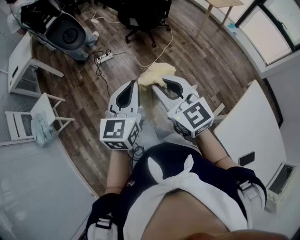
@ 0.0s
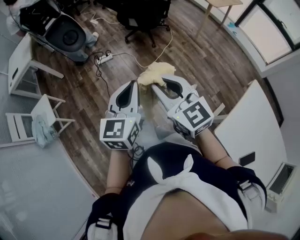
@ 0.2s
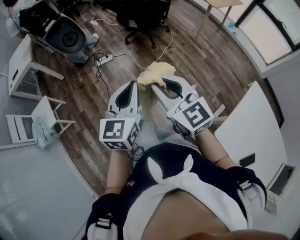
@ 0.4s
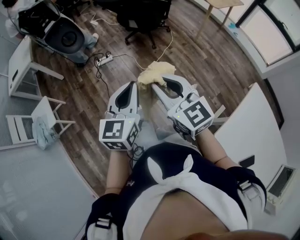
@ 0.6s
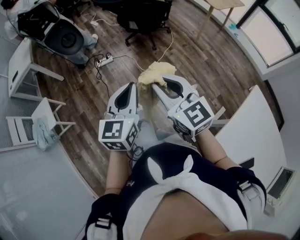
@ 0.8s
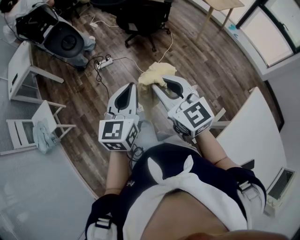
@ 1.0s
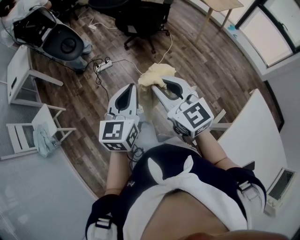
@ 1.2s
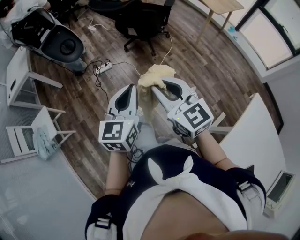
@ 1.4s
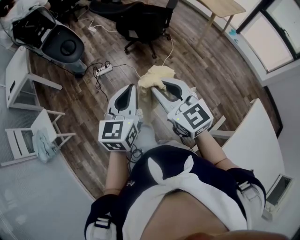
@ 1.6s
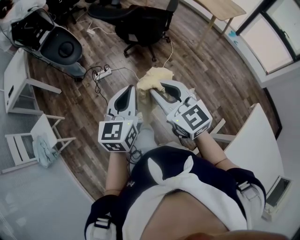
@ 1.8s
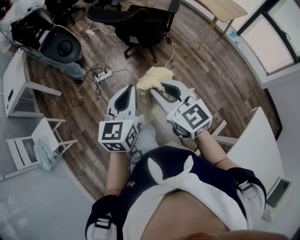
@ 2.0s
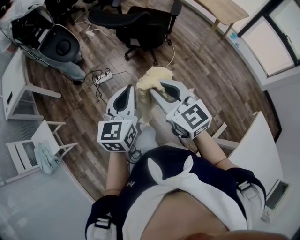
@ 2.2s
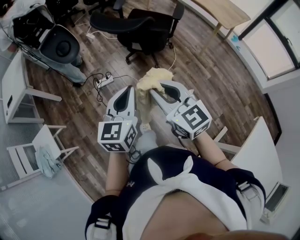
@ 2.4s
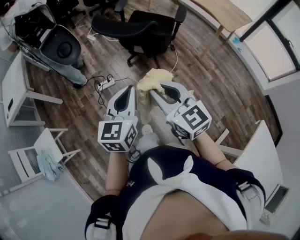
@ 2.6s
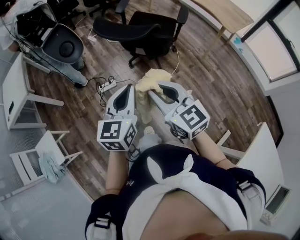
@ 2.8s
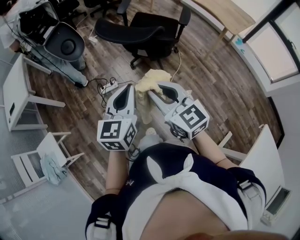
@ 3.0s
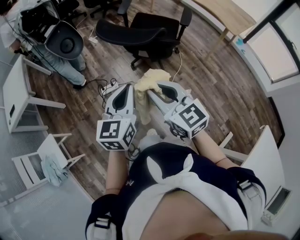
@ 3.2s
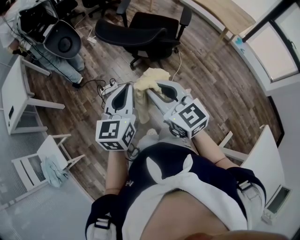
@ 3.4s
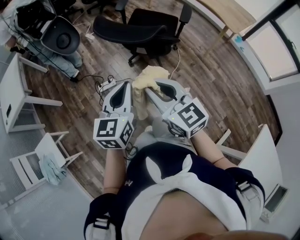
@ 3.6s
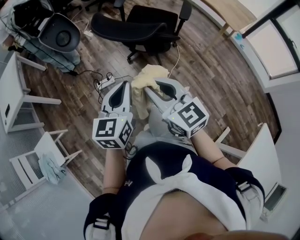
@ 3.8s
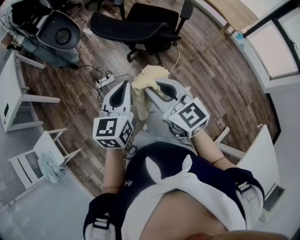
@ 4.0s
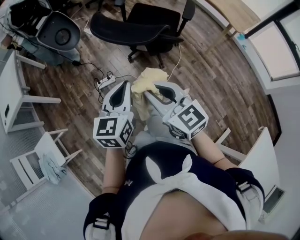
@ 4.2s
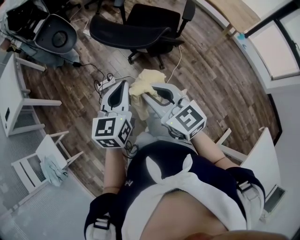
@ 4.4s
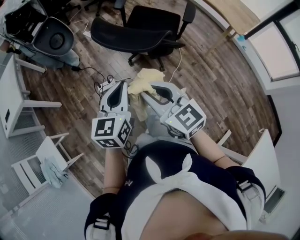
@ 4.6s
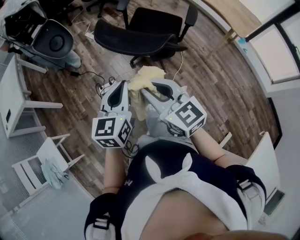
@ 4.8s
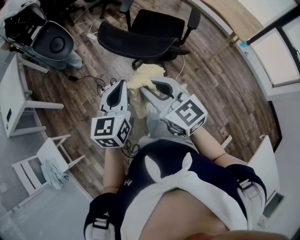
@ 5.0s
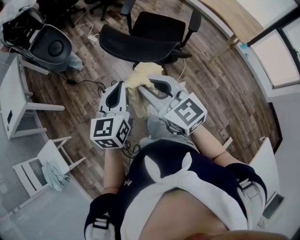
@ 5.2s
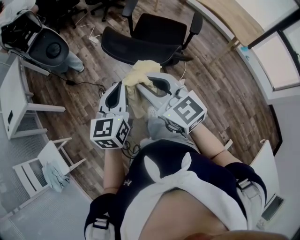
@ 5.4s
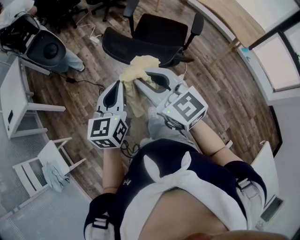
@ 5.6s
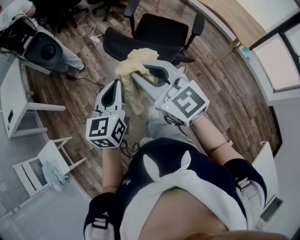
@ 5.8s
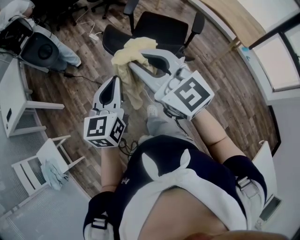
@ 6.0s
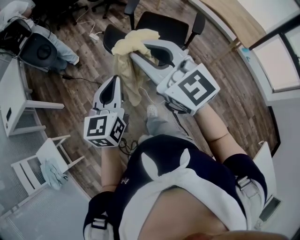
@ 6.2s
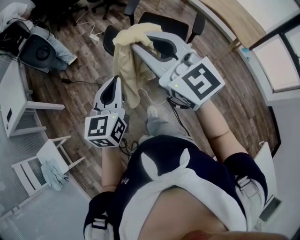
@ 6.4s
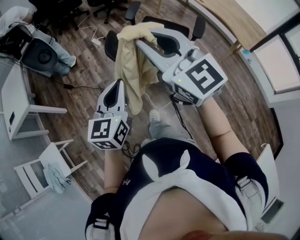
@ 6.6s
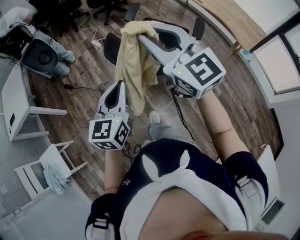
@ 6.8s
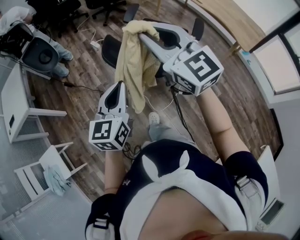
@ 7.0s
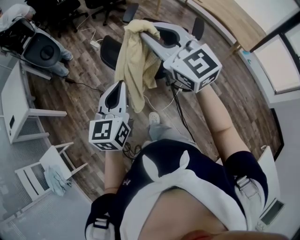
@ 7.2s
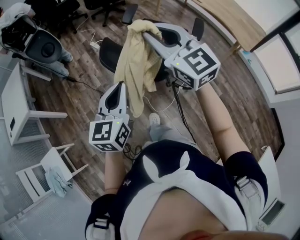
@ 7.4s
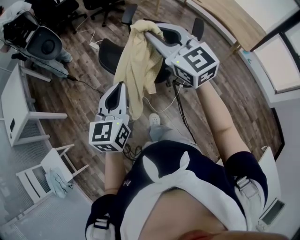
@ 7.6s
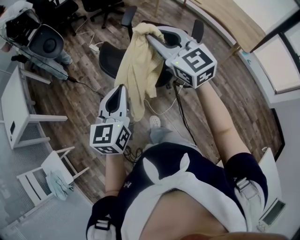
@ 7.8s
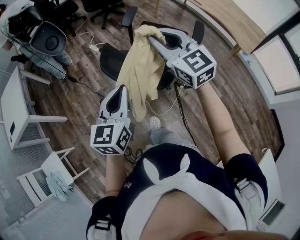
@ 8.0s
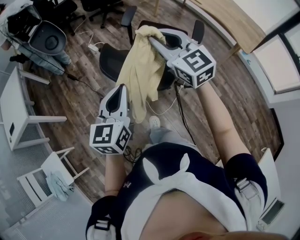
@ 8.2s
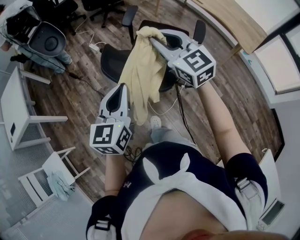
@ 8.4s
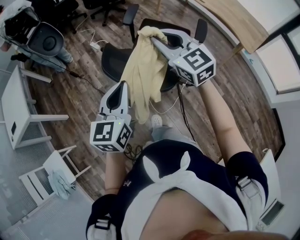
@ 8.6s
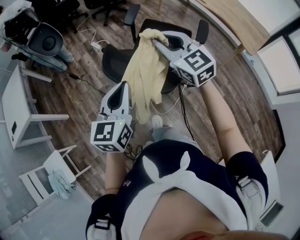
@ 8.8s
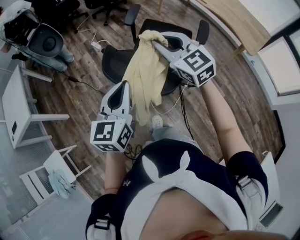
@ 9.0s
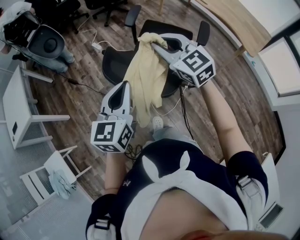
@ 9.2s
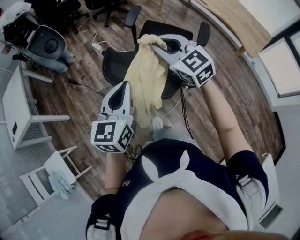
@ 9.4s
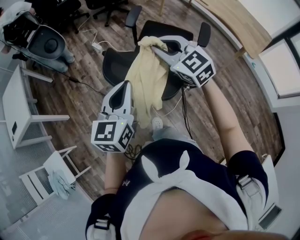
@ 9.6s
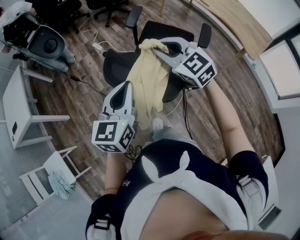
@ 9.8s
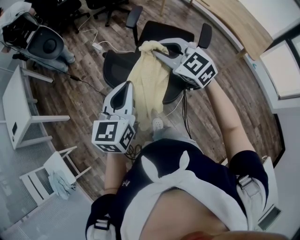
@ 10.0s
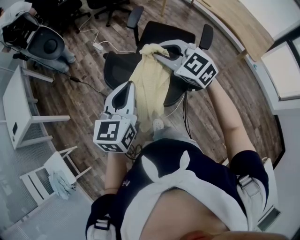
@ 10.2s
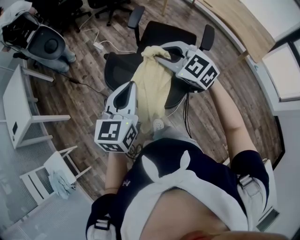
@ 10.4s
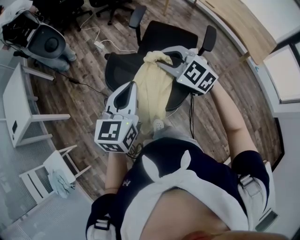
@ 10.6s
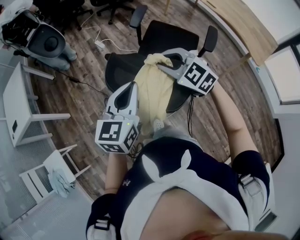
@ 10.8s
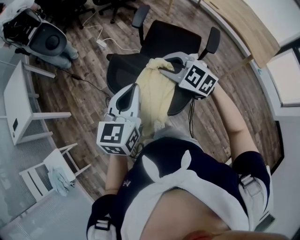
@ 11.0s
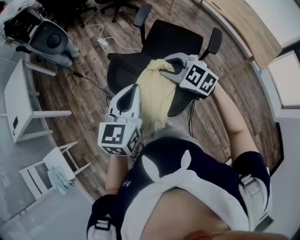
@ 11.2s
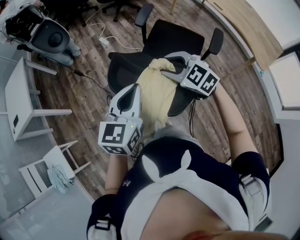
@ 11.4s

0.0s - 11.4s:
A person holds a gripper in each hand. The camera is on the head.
0.0s - 1.4s: Both grippers travel together forward, about 15 cm.
1.4s - 2.8s: Both grippers travel together forward, some 35 cm.
2.8s - 4.2s: Both grippers travel together forward, roughly 10 cm.
4.2s - 5.6s: The right gripper travels forward, upward and to the left by roughly 15 cm; the left gripper goes roughly 15 cm forward and to the left.
5.6s - 7.2s: The left gripper changes place by roughly 5 cm, while the right gripper goes roughly 20 cm forward, to the right and upward.
7.2s - 8.6s: The left gripper goes some 5 cm forward. The right gripper moves forward and downward, roughly 10 cm.
8.6s - 10.0s: The left gripper travels forward by approximately 5 cm. Meanwhile the right gripper changes place by approximately 5 cm.
10.0s - 11.4s: The right gripper is displaced downward by roughly 10 cm, and opens.

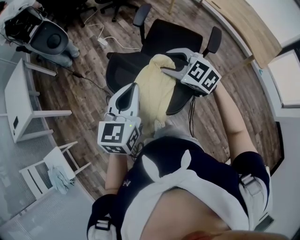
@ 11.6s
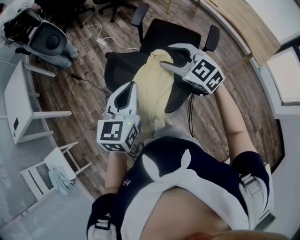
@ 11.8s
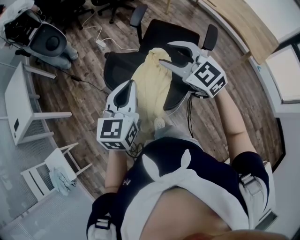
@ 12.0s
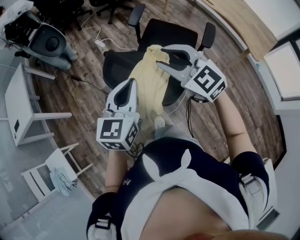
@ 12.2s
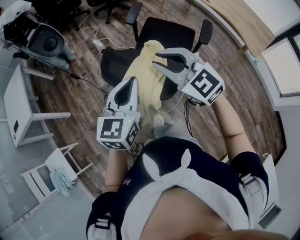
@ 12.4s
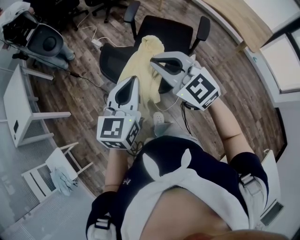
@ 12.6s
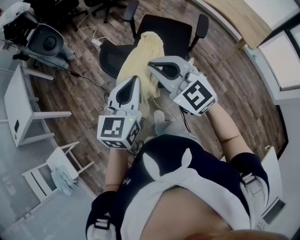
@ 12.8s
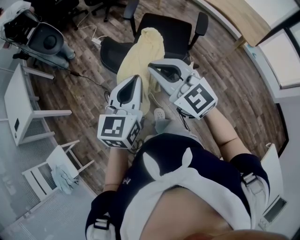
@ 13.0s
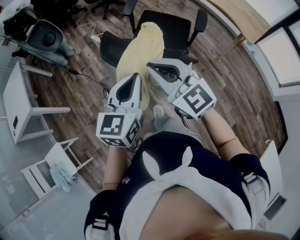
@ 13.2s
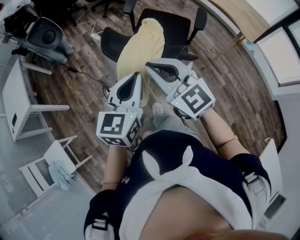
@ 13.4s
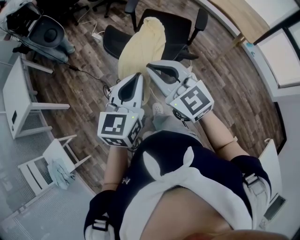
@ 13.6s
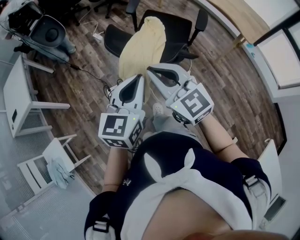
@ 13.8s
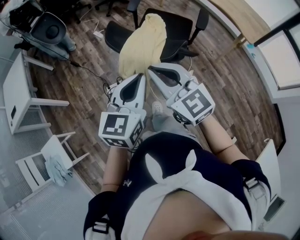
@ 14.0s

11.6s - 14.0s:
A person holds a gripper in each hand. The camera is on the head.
11.6s - 12.8s: The right gripper moves backward and upward, approximately 20 cm, turns by roughly 20 degrees, and closes up. Meanwhile the left gripper is displaced backward by approximately 10 cm.
12.8s - 14.0s: Both grippers travel together backward, roughly 10 cm.

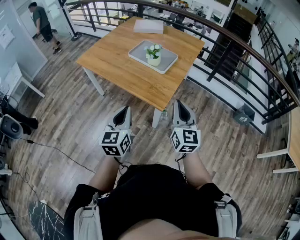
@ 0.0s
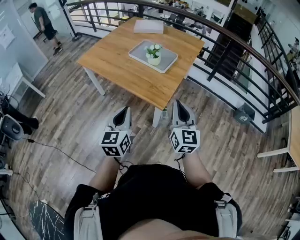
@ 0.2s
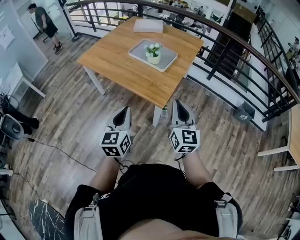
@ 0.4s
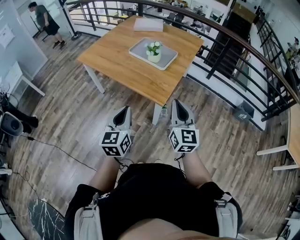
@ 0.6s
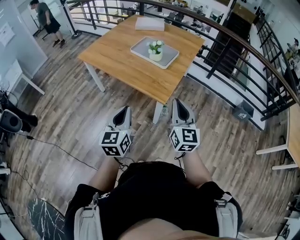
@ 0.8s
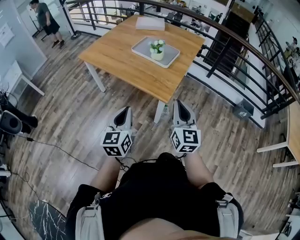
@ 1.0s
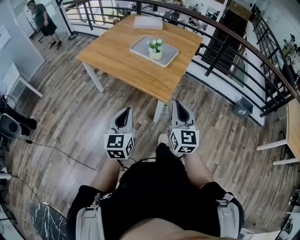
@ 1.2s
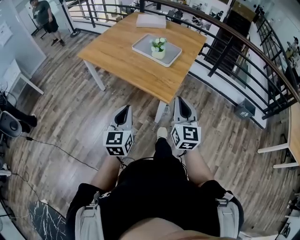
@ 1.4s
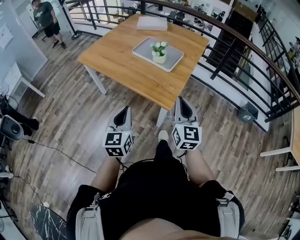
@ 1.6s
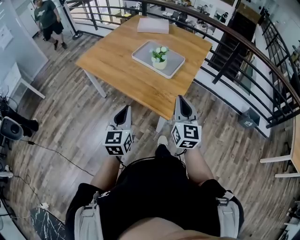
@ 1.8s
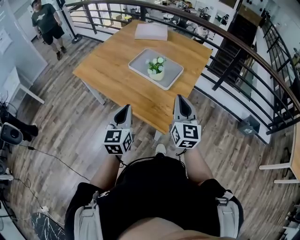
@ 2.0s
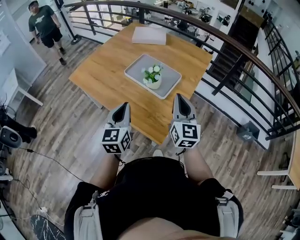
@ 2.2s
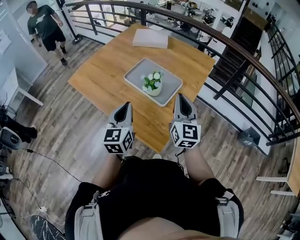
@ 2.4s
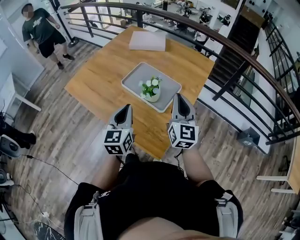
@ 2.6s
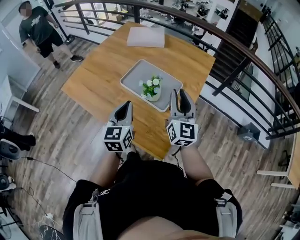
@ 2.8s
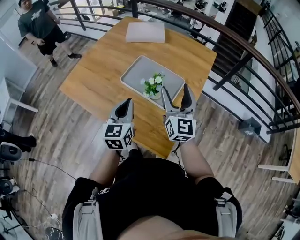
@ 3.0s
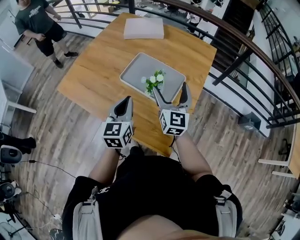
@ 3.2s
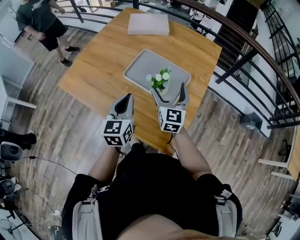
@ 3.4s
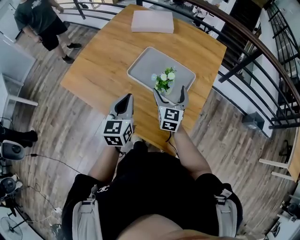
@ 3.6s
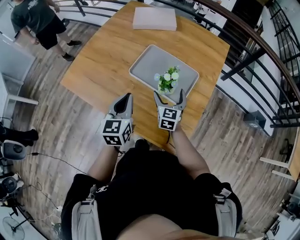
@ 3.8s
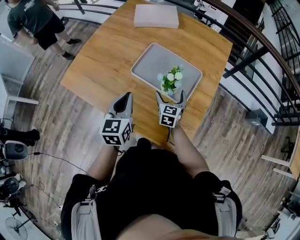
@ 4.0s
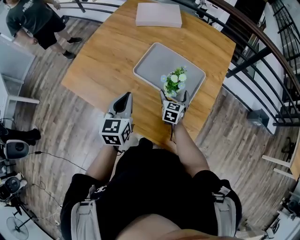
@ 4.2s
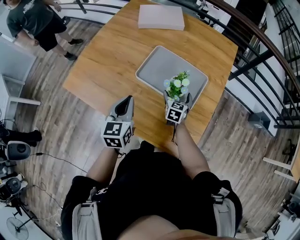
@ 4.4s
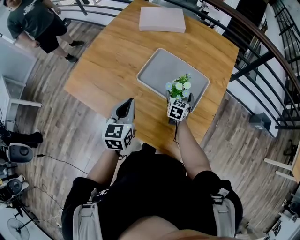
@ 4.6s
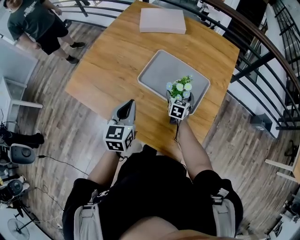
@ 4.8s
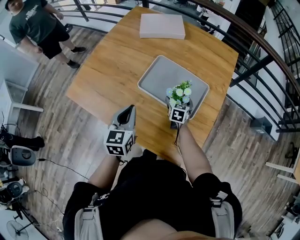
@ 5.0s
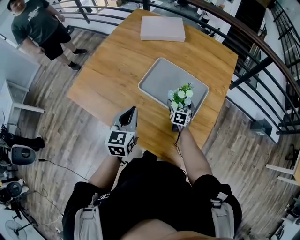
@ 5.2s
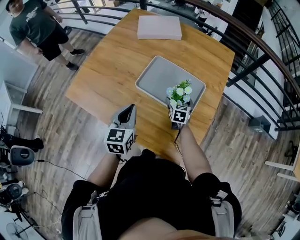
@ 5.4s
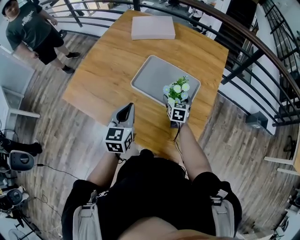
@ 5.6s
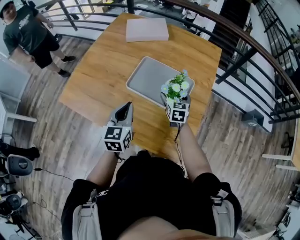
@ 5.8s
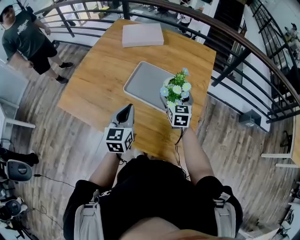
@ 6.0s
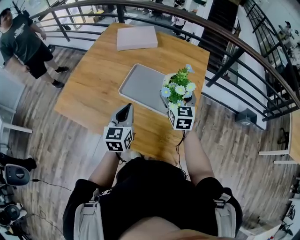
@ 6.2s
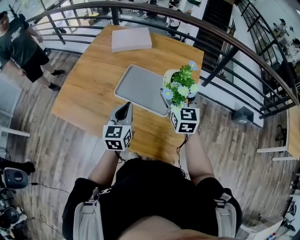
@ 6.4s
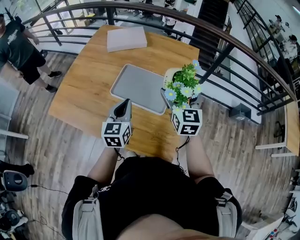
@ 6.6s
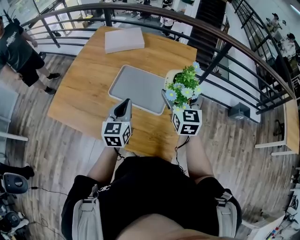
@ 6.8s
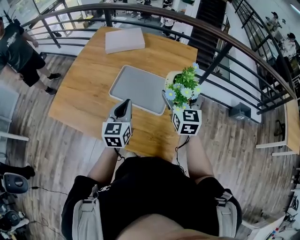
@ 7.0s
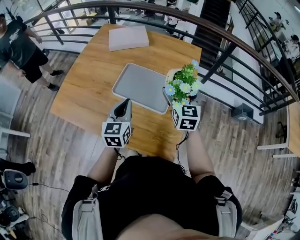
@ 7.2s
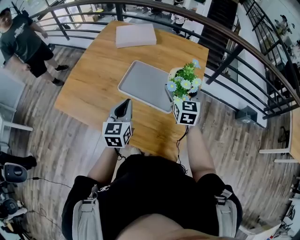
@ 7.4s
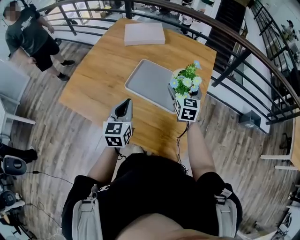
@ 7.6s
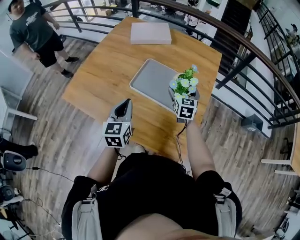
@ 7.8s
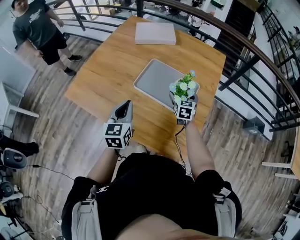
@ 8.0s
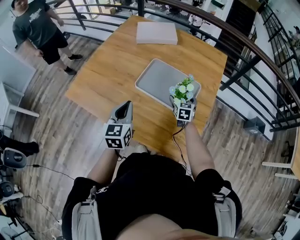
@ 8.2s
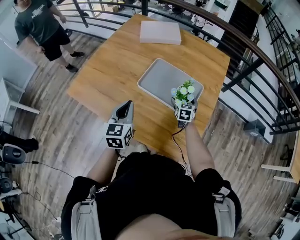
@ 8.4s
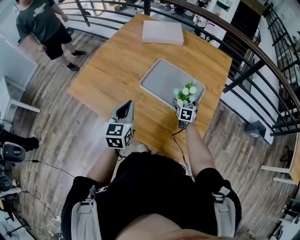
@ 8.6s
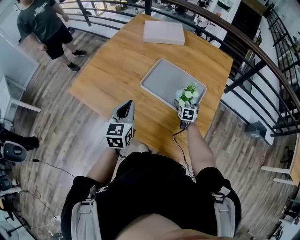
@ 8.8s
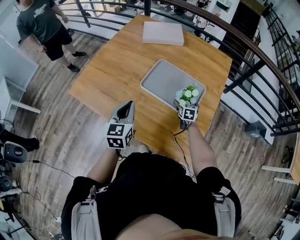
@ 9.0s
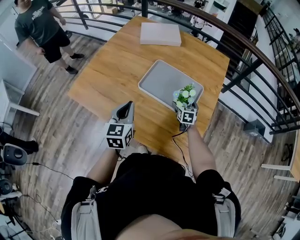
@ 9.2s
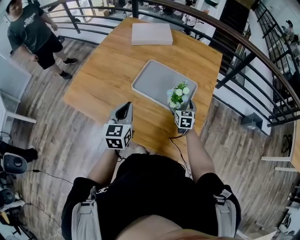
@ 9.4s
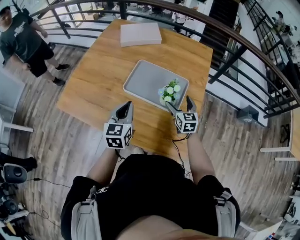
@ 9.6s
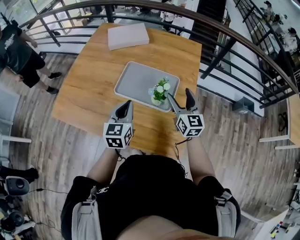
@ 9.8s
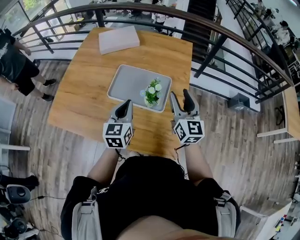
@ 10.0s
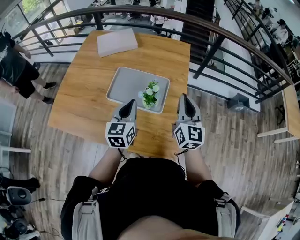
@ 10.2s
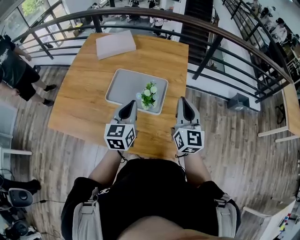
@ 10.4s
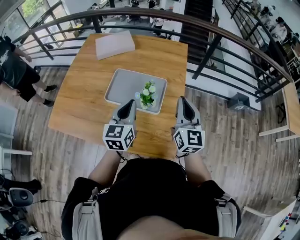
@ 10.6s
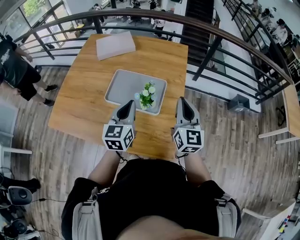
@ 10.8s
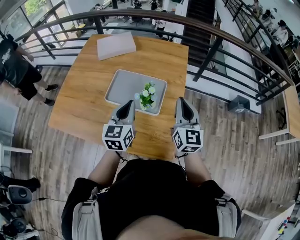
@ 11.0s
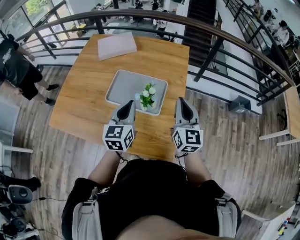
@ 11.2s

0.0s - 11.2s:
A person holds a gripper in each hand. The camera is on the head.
0.0s - 1.6s: The right gripper travels backward and back again, about 5 cm each way. Meanwhile the left gripper goes about 5 cm to the left, and travels backward and back again, roughly 5 cm each way.
1.6s - 3.2s: The pair of grippers is taken forward, some 40 cm. The right gripper opens up.
3.2s - 4.8s: The left gripper goes some 15 cm to the left, forward and downward. The right gripper moves downward and forward, roughly 30 cm, and angles its fingers downward, by roughly 40 degrees.
4.8s - 6.4s: The left gripper shifts about 10 cm to the right and upward; the right gripper moves upward, approximately 30 cm, and rotates some 30 degrees.
6.4s - 8.0s: The right gripper is displaced downward by roughly 20 cm. The left gripper goes approximately 10 cm to the left.
8.0s - 9.6s: The right gripper goes about 5 cm backward, and reaches about 10 cm downward, then returns.
9.6s - 11.2s: The left gripper moves to the right and upward, roughly 15 cm, while the right gripper is displaced upward and to the right by some 25 cm, swivels about 30 degrees, and closes.
